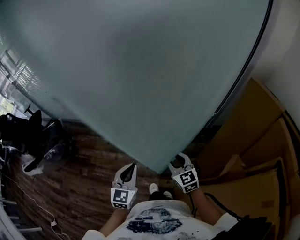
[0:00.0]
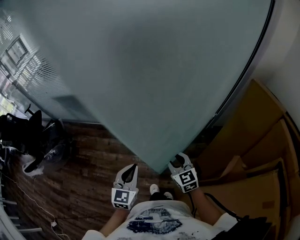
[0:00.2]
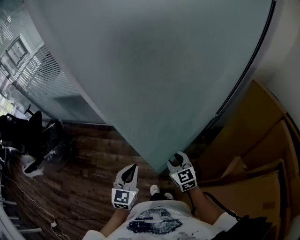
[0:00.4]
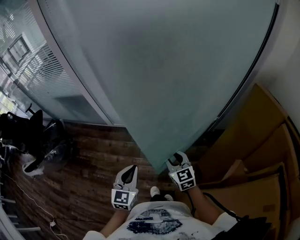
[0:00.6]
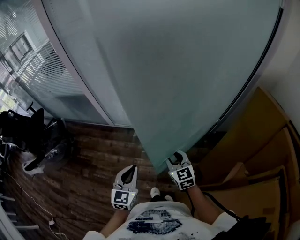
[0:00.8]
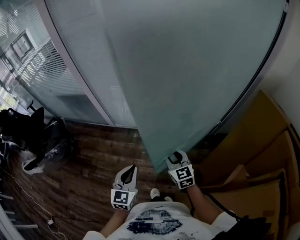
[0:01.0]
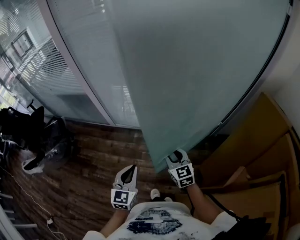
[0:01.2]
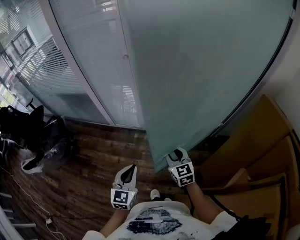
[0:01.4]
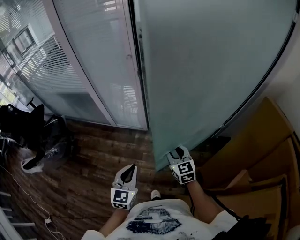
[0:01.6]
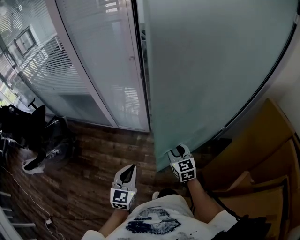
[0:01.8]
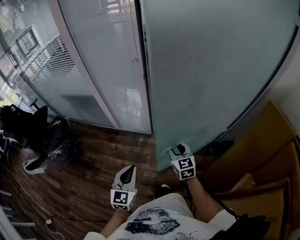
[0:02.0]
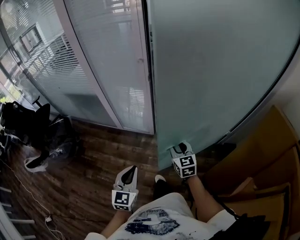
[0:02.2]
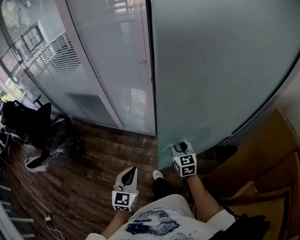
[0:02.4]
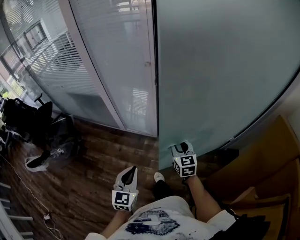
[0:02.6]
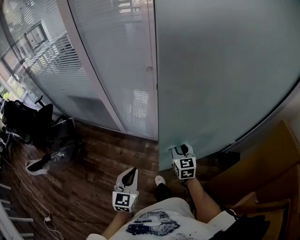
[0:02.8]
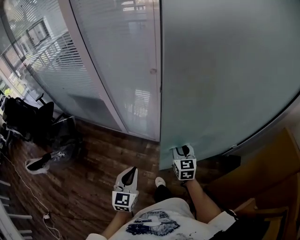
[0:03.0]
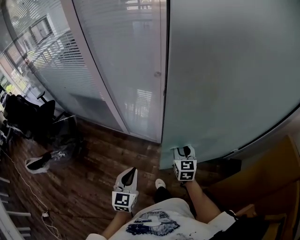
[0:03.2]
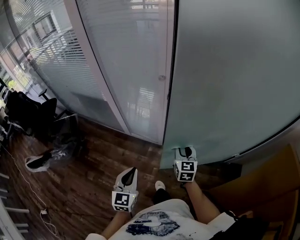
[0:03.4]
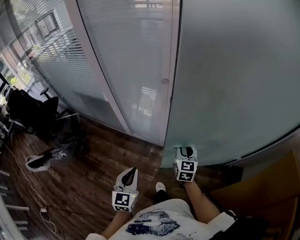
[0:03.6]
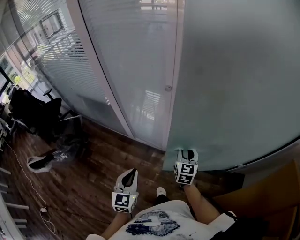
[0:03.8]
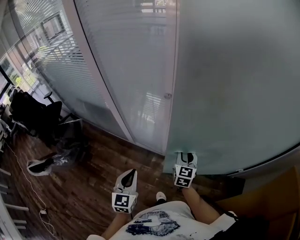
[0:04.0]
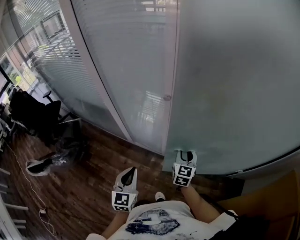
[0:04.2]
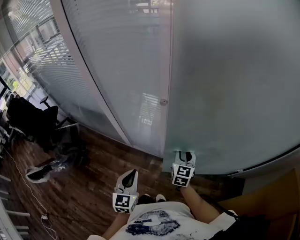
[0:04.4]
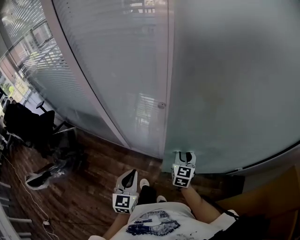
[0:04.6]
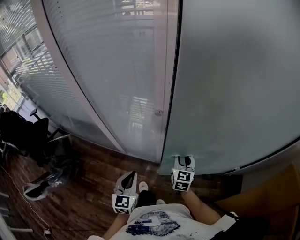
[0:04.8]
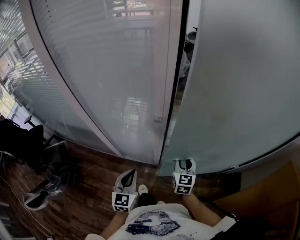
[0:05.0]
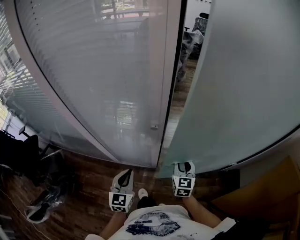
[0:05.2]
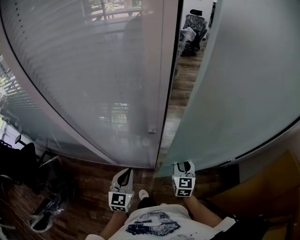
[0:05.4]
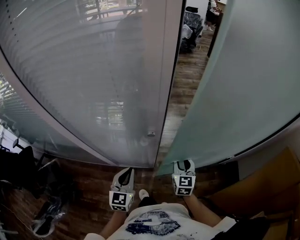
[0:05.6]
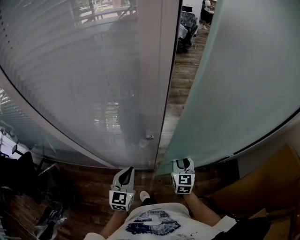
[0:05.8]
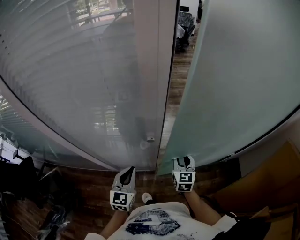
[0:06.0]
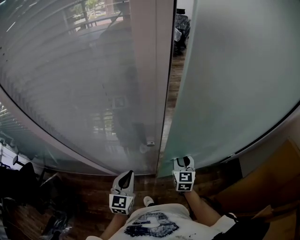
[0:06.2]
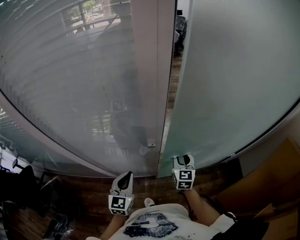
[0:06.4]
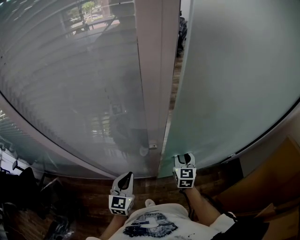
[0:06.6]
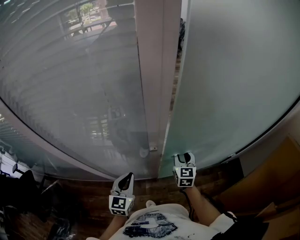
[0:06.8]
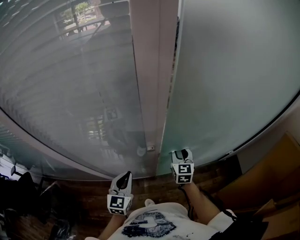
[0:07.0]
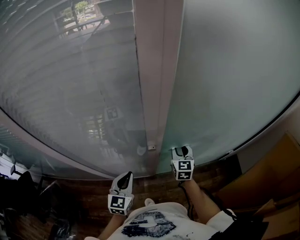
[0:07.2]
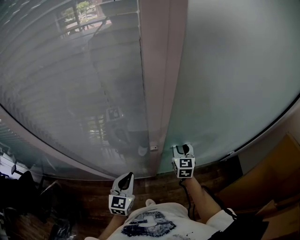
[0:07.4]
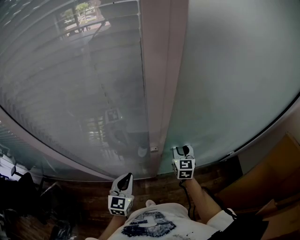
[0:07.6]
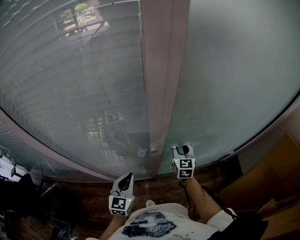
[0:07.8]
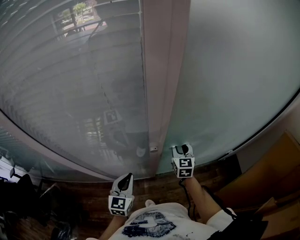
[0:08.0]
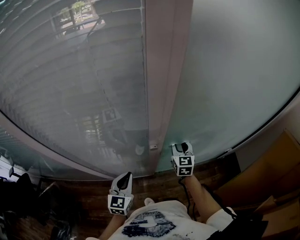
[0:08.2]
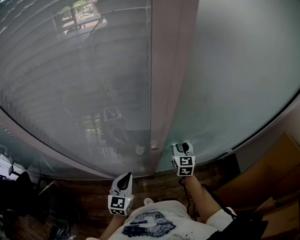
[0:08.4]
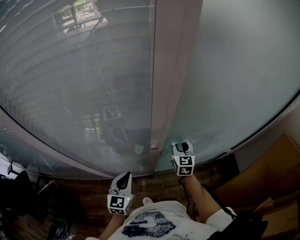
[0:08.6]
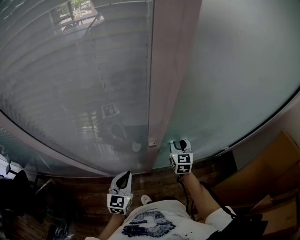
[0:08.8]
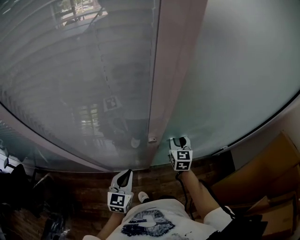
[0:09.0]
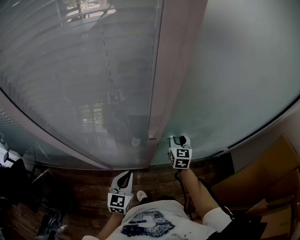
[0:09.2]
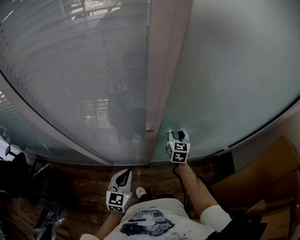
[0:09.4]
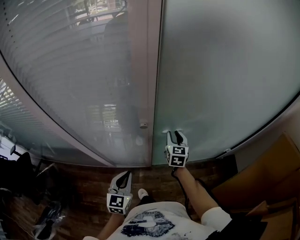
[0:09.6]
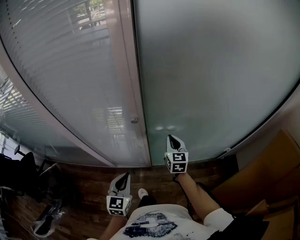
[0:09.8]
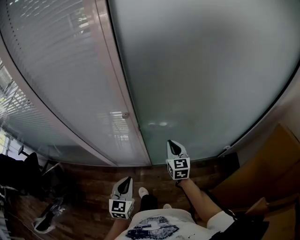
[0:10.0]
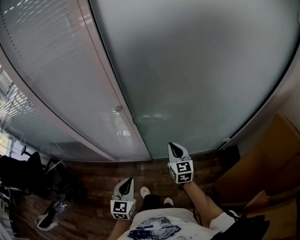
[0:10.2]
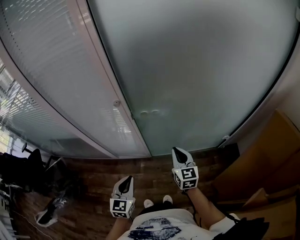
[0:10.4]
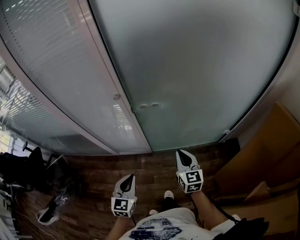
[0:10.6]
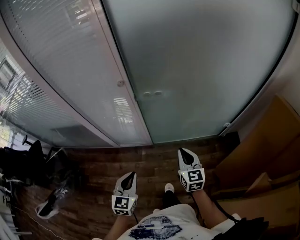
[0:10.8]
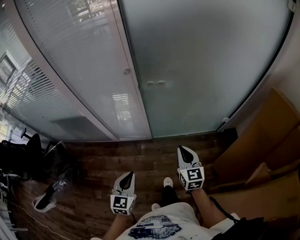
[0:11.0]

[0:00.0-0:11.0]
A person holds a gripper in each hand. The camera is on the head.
0:00.0 to 0:01.6: The right gripper goes some 15 cm forward and to the left; the left gripper travels to the left and forward by about 10 cm.
0:01.6 to 0:03.2: The right gripper goes roughly 20 cm forward; the left gripper shifts roughly 15 cm forward and to the left.
0:03.2 to 0:04.8: The grippers both shift forward by some 15 cm.
0:04.8 to 0:06.2: The left gripper shifts approximately 15 cm forward, and changes its angle by about 20 degrees. Meanwhile the right gripper travels forward by about 10 cm.
0:06.2 to 0:07.8: The right gripper goes about 5 cm forward.
0:07.8 to 0:09.4: The left gripper heads backward, covering about 5 cm.
0:09.4 to 0:11.0: The grippers both shift backward by about 35 cm. The right gripper closes its fingers.

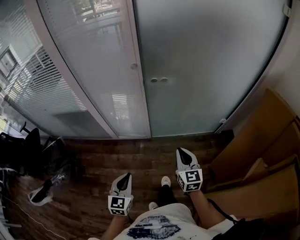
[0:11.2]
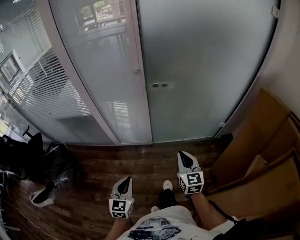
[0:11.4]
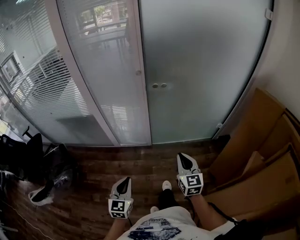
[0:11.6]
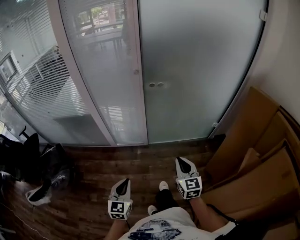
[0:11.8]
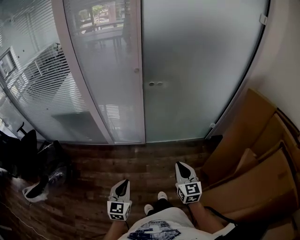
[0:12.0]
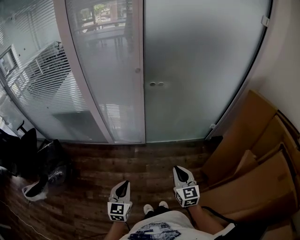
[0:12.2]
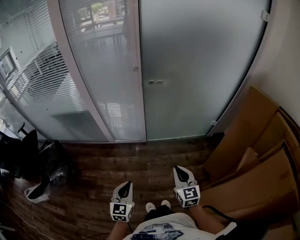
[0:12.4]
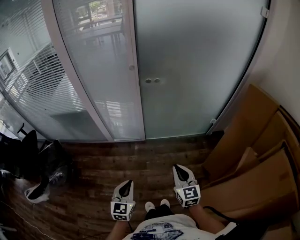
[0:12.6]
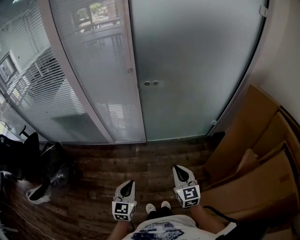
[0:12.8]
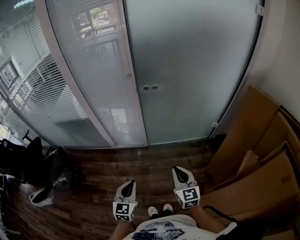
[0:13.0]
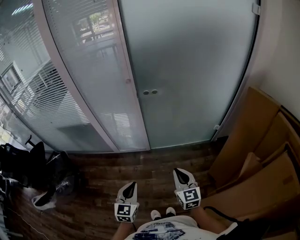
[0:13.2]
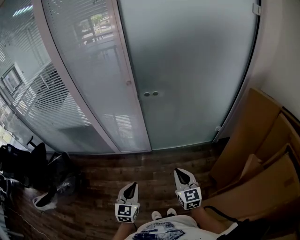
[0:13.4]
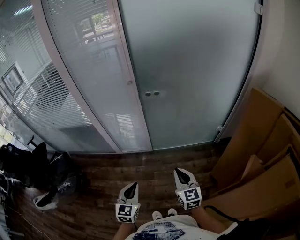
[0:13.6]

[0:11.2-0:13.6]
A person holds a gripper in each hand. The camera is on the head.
0:11.2 to 0:12.4: Both grippers move backward, about 15 cm.
0:12.4 to 0:13.6: The right gripper ends up approximately 5 cm from where it was, while the left gripper heads to the right and forward, covering about 10 cm.

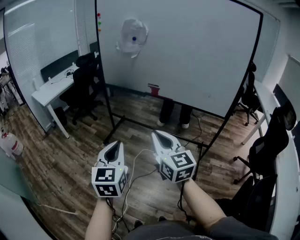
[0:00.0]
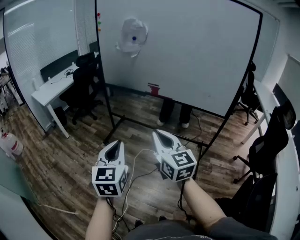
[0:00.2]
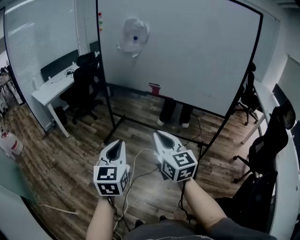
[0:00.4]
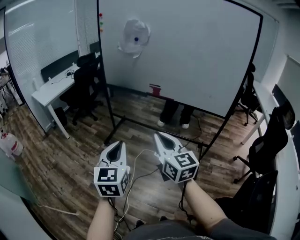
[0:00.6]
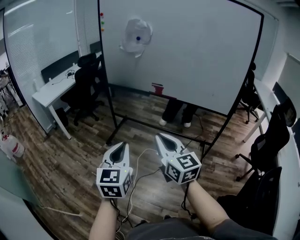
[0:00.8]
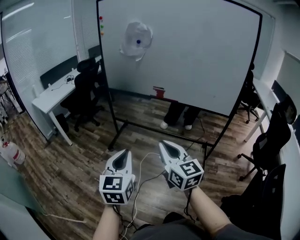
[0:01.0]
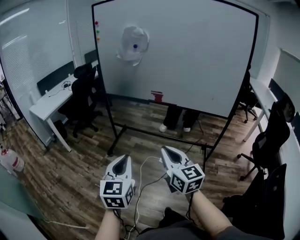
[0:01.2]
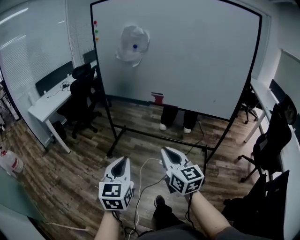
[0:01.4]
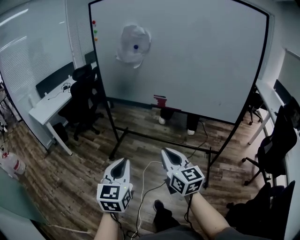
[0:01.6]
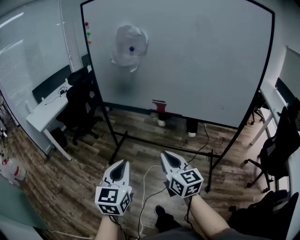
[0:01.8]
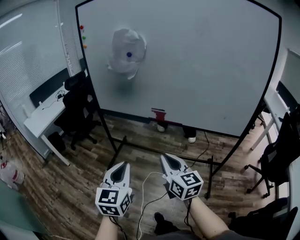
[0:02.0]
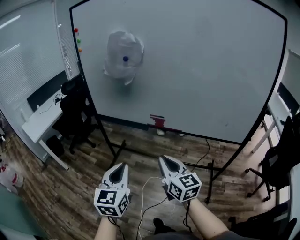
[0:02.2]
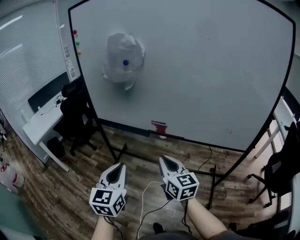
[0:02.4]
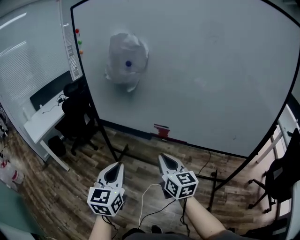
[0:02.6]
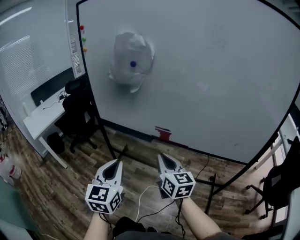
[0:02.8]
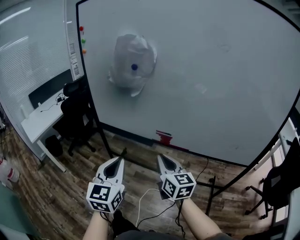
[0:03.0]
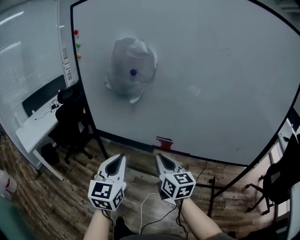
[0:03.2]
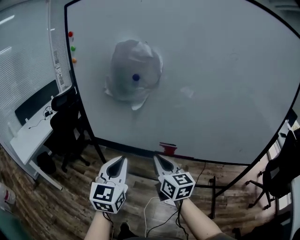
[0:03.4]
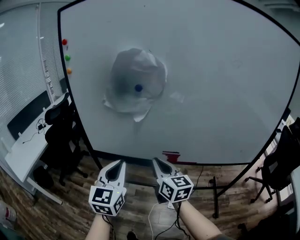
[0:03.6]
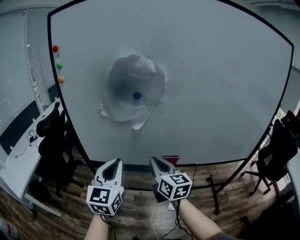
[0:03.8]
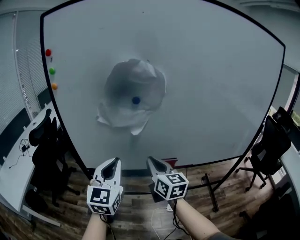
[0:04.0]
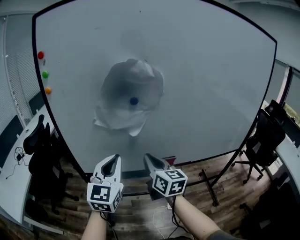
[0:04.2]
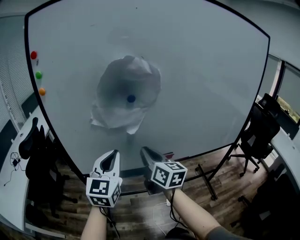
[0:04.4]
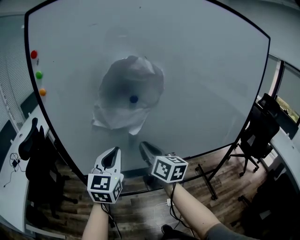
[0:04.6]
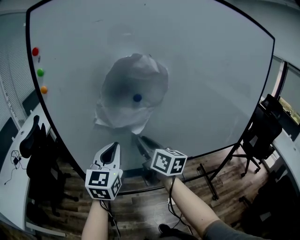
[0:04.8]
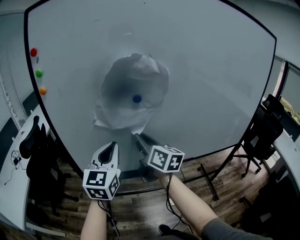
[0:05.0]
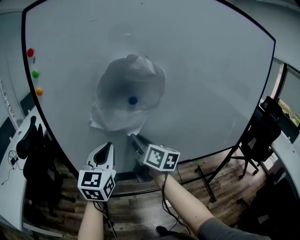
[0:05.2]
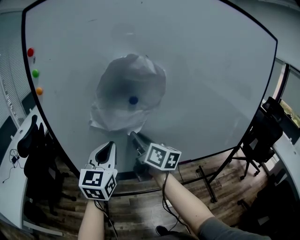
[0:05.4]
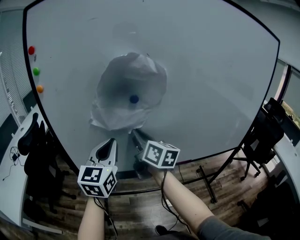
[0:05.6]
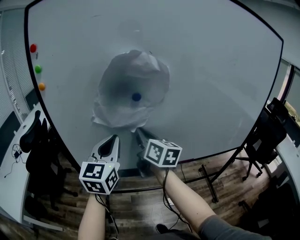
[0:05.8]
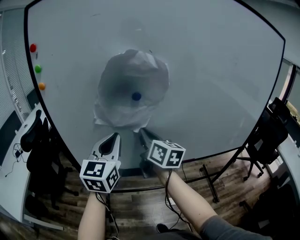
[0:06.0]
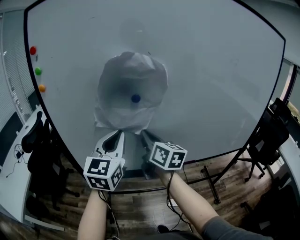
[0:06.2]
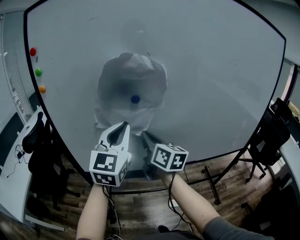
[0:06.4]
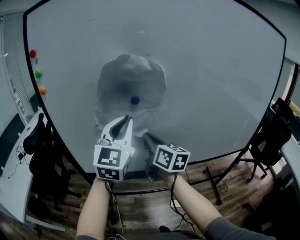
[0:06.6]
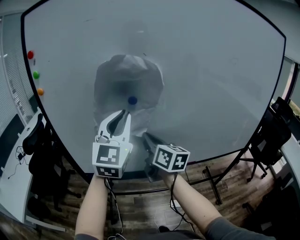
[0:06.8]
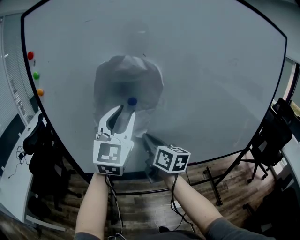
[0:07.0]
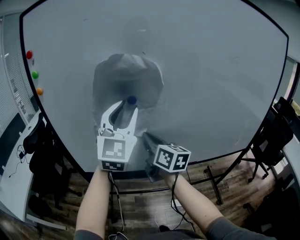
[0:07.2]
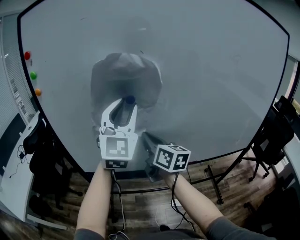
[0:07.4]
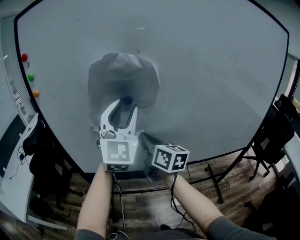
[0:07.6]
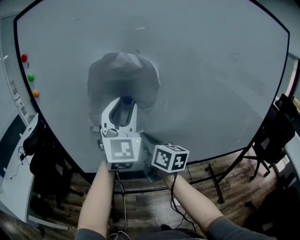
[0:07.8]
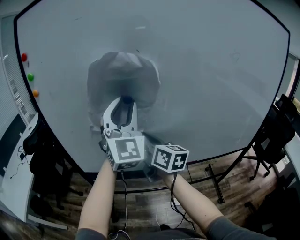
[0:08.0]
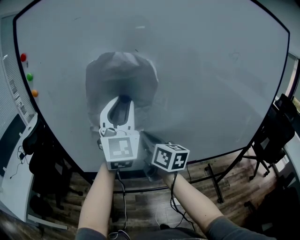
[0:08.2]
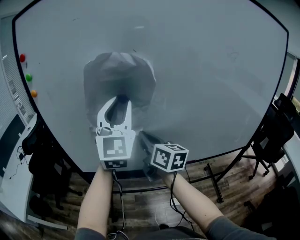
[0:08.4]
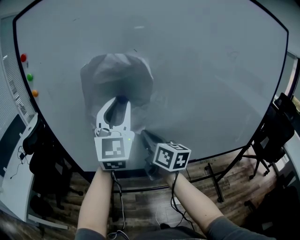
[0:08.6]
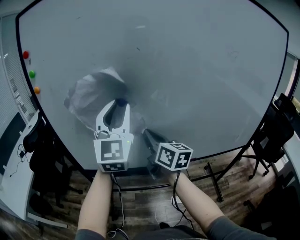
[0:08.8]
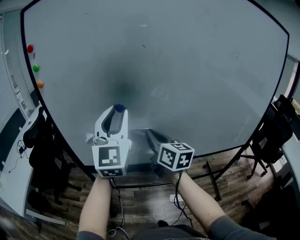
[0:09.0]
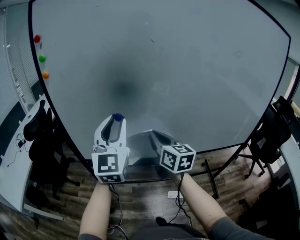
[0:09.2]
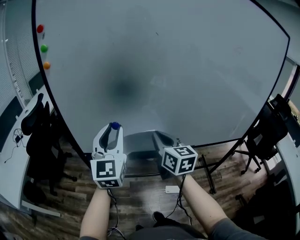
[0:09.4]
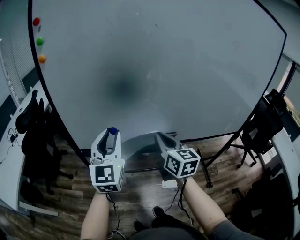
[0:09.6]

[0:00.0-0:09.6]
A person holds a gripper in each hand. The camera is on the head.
0:00.0 to 0:01.6: The left gripper shifts some 10 cm forward. Meanwhile the right gripper is displaced forward and downward by roughly 10 cm.
0:01.6 to 0:03.2: The two grippers go roughly 35 cm forward.
0:03.2 to 0:04.8: The right gripper goes some 25 cm forward, to the left and upward, and rotates some 30 degrees; the left gripper goes roughly 25 cm forward and to the left, and changes its angle by some 30 degrees.
0:04.8 to 0:06.4: The left gripper heads upward and to the right, covering about 10 cm.
0:06.4 to 0:08.0: The left gripper travels upward by approximately 5 cm, turns by about 30 degrees, and opens up.
0:08.0 to 0:09.6: The left gripper travels downward, to the left and backward by some 20 cm, and turns by approximately 30 degrees; the right gripper moves backward and downward, roughly 10 cm, and changes its angle by roughly 20 degrees.
